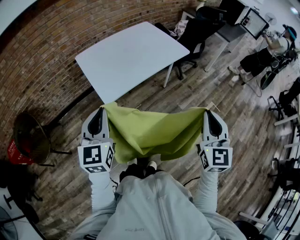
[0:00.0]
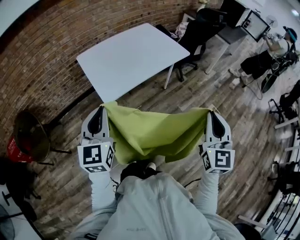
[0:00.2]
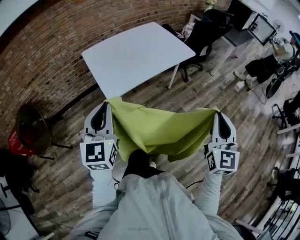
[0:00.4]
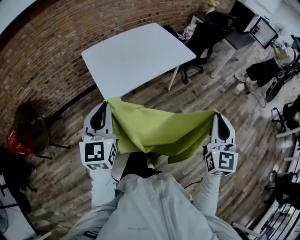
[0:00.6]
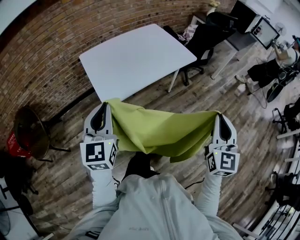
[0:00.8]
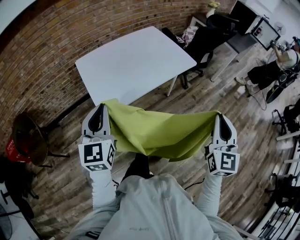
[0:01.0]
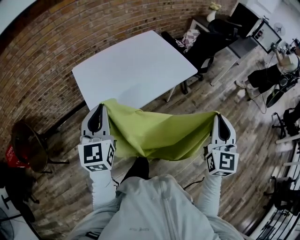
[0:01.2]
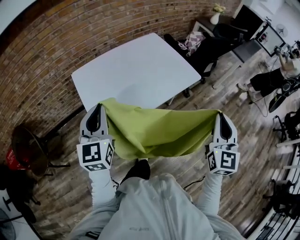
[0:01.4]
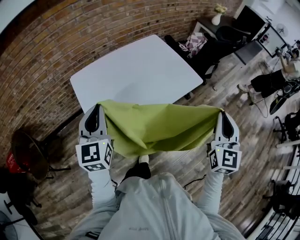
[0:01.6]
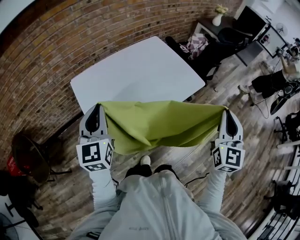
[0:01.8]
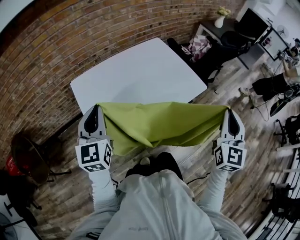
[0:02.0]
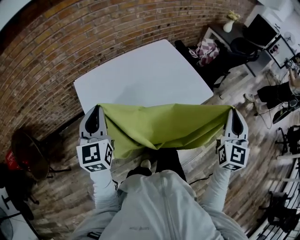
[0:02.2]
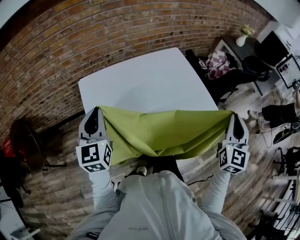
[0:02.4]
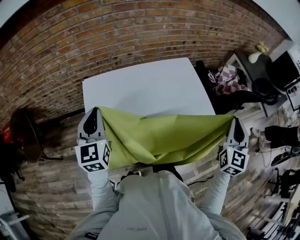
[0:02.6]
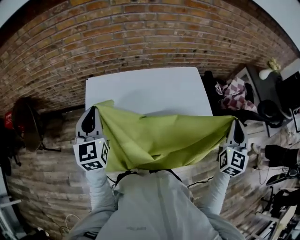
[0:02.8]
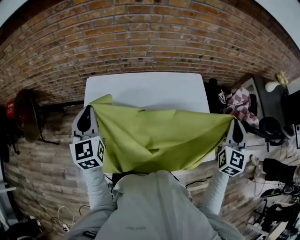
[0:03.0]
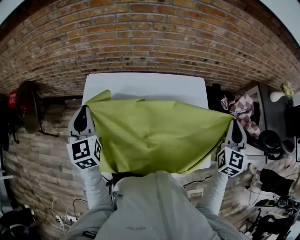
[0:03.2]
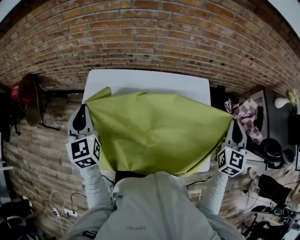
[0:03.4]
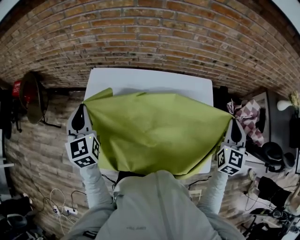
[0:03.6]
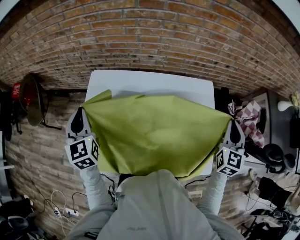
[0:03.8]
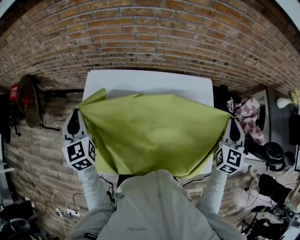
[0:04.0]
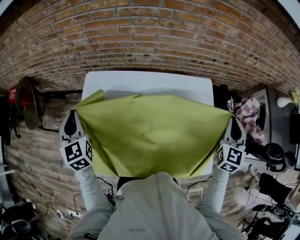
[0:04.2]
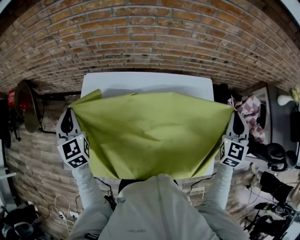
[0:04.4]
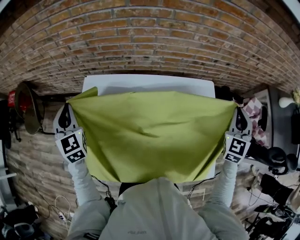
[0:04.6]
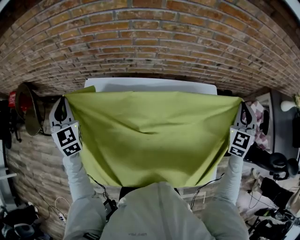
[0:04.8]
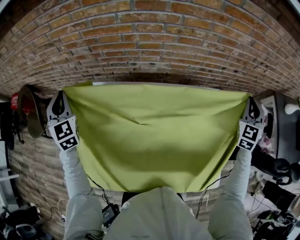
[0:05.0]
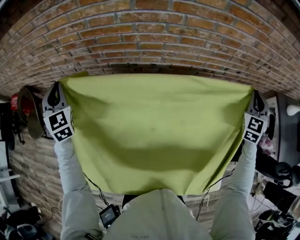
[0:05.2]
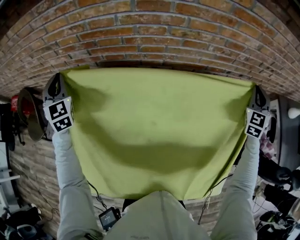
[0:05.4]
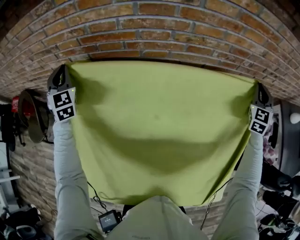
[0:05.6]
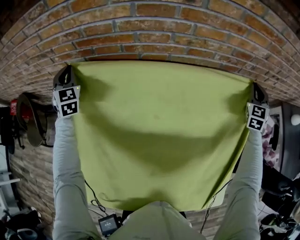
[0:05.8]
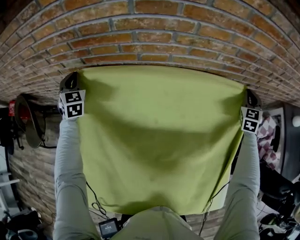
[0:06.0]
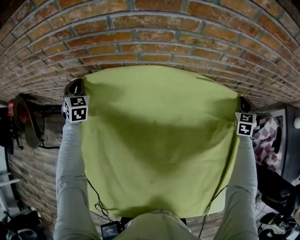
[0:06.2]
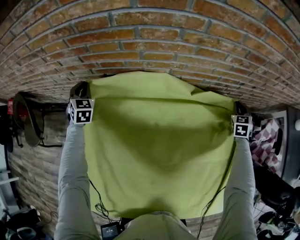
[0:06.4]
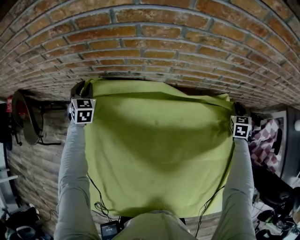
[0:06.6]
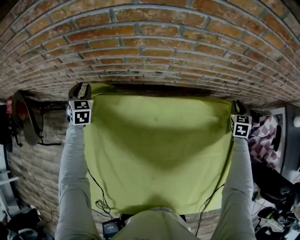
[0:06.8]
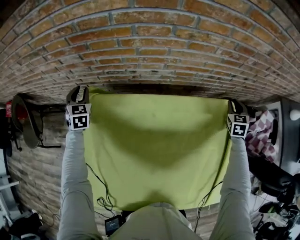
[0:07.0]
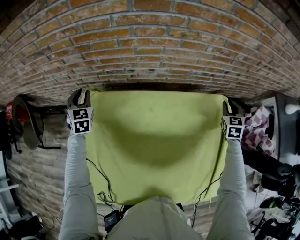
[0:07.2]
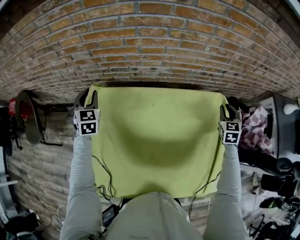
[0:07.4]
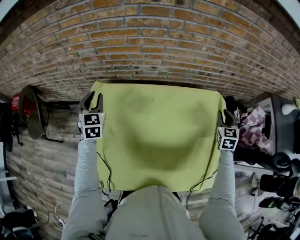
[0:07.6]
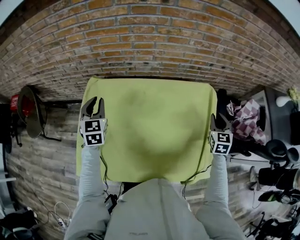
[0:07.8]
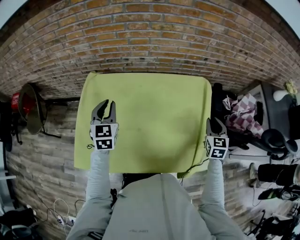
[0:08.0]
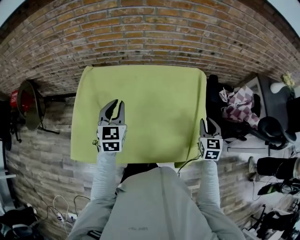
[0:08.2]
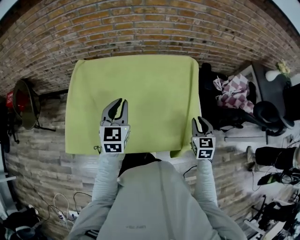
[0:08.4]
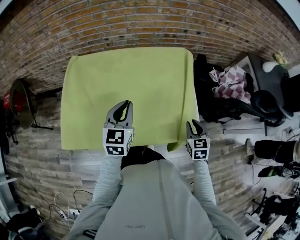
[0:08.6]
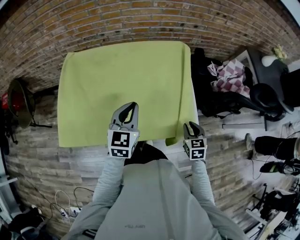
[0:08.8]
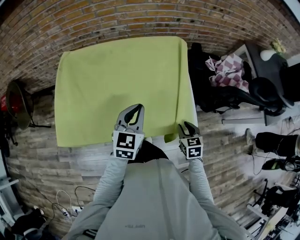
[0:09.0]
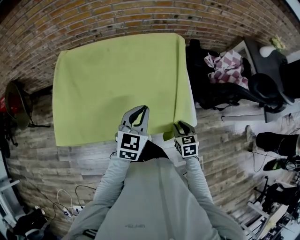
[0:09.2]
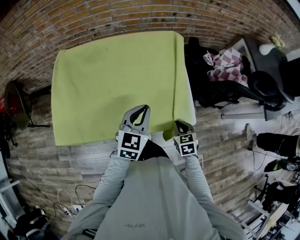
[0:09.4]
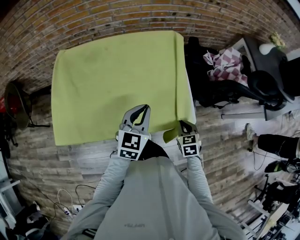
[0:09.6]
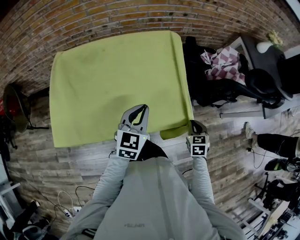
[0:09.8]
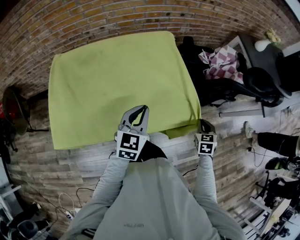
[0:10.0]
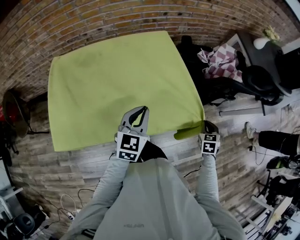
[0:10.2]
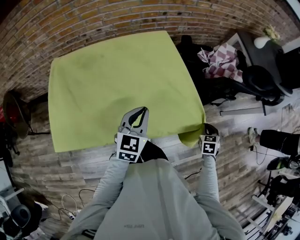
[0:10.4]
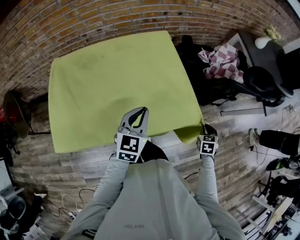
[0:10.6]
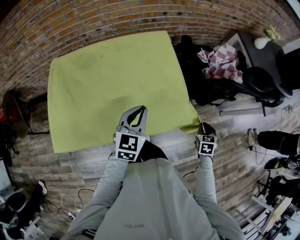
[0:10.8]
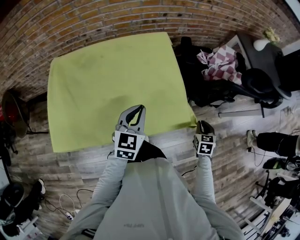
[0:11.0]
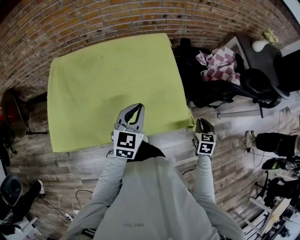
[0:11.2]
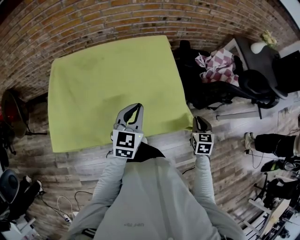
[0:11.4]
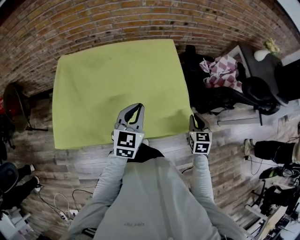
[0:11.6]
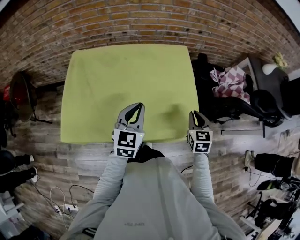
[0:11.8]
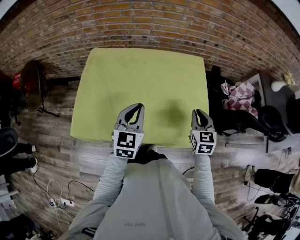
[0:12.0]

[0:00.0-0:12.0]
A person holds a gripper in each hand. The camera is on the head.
0:00.0 to 0:01.6: Both grippers travel together forward, roughly 25 cm.
0:01.6 to 0:03.0: The right gripper shifts by about 40 cm. Meanwhile the left gripper changes place by approximately 20 cm, and swivels roughly 40 degrees.
0:03.0 to 0:04.4: The right gripper goes approximately 15 cm forward and downward. The left gripper shifts about 5 cm to the left, and swivels approximately 20 degrees.
0:04.4 to 0:06.0: The left gripper heads forward, covering roughly 30 cm, while the right gripper is displaced forward and downward by about 30 cm.
0:06.0 to 0:07.6: The left gripper shifts roughly 20 cm backward and to the right, and opens up; the right gripper moves backward, some 20 cm.
0:07.6 to 0:09.0: The right gripper is displaced backward by about 35 cm, and changes its angle by approximately 20 degrees. Meanwhile the left gripper goes about 50 cm to the right and backward, turns by some 40 degrees, and closes up.
0:09.0 to 0:10.4: The right gripper heads to the right, covering approximately 20 cm, and changes its angle by roughly 20 degrees. The left gripper travels to the right by some 5 cm.
0:10.4 to 0:12.0: The right gripper changes place by about 35 cm, and rotates about 40 degrees; the left gripper ends up approximately 15 cm from where it was, and swivels roughly 20 degrees.

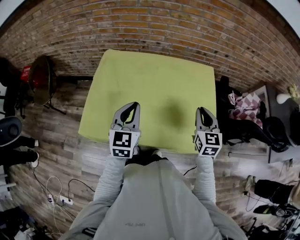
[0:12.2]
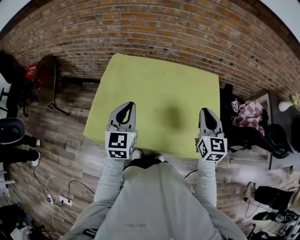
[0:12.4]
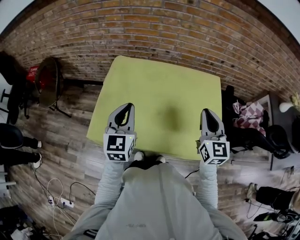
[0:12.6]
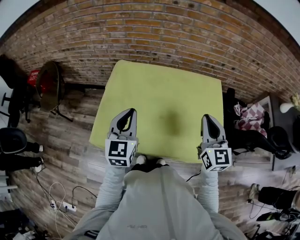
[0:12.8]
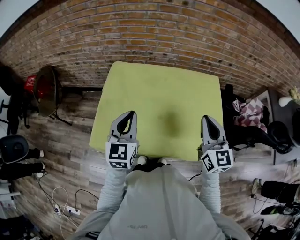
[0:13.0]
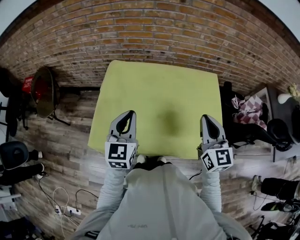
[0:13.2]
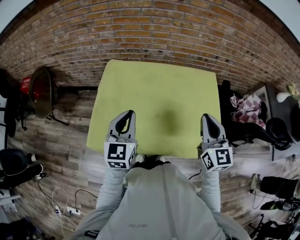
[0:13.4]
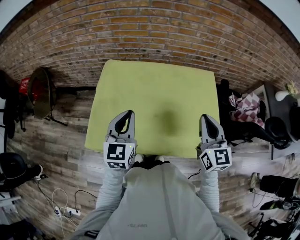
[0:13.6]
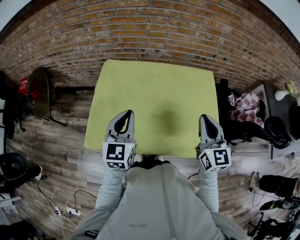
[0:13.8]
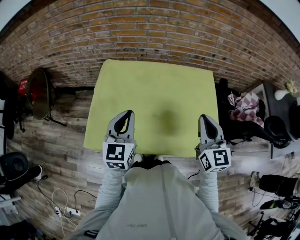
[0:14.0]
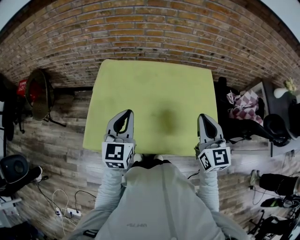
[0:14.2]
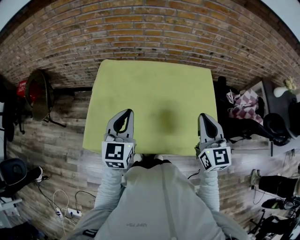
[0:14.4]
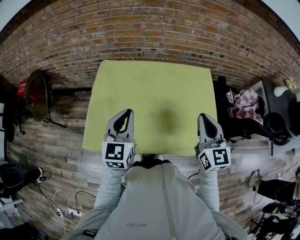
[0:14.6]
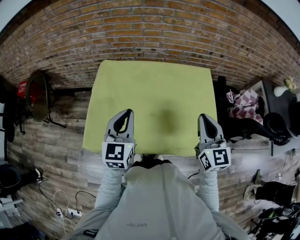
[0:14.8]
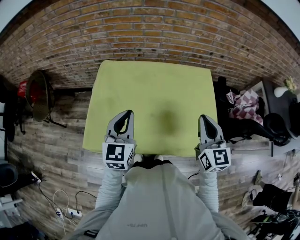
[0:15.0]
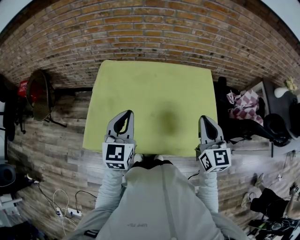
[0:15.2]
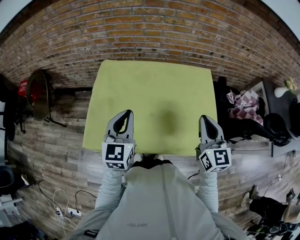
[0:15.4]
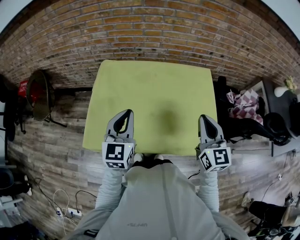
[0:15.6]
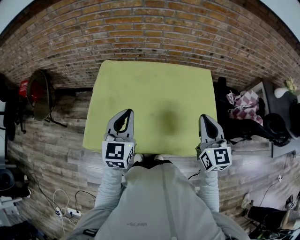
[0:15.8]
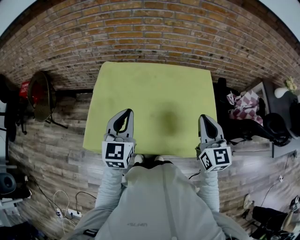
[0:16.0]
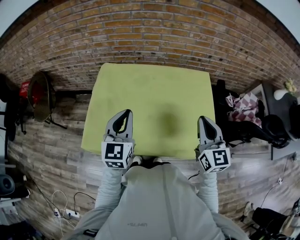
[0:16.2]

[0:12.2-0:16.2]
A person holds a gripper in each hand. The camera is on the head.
0:12.2 to 0:13.6: The left gripper travels to the left by roughly 5 cm. The right gripper is displaced upward and to the left by roughly 10 cm.
0:13.6 to 0:16.2: There are only small adjustments of the grippers.

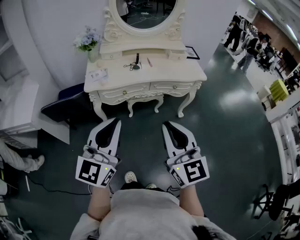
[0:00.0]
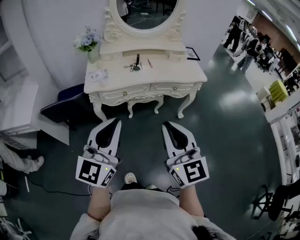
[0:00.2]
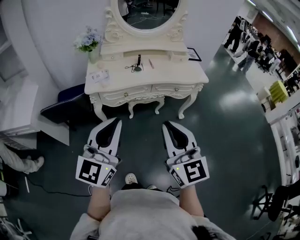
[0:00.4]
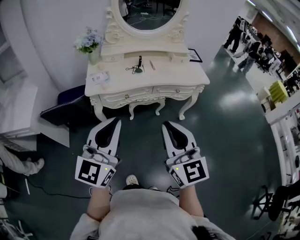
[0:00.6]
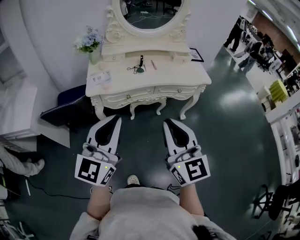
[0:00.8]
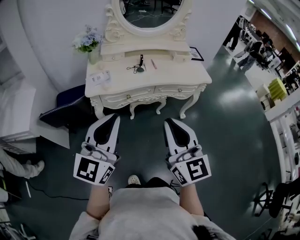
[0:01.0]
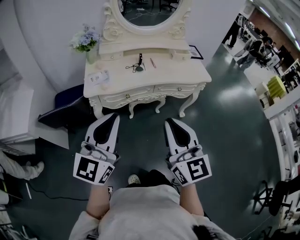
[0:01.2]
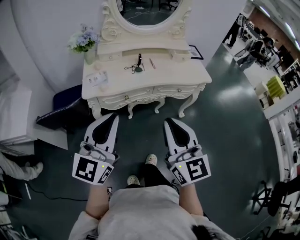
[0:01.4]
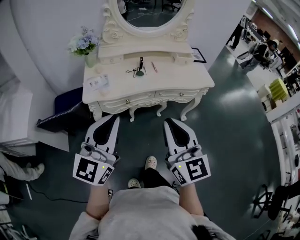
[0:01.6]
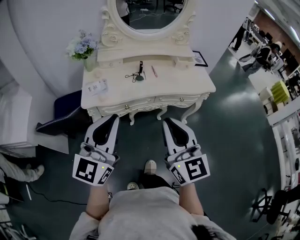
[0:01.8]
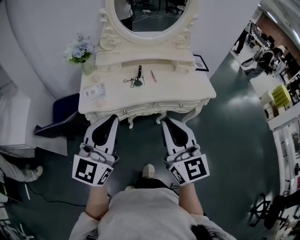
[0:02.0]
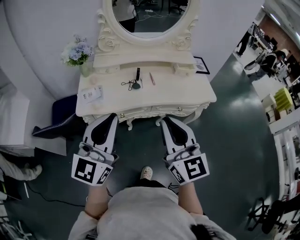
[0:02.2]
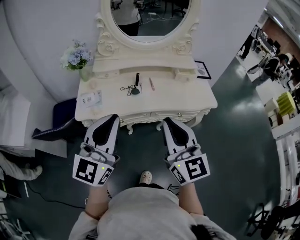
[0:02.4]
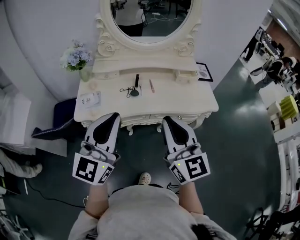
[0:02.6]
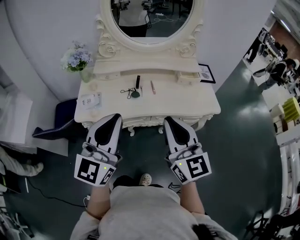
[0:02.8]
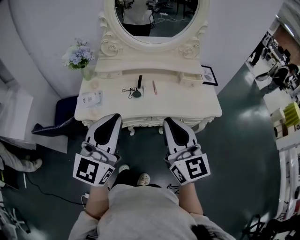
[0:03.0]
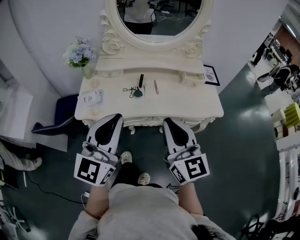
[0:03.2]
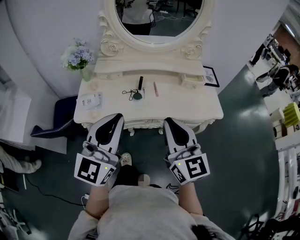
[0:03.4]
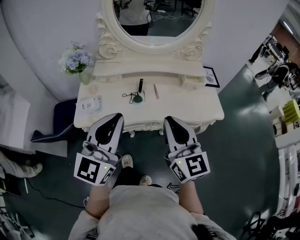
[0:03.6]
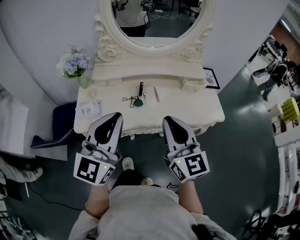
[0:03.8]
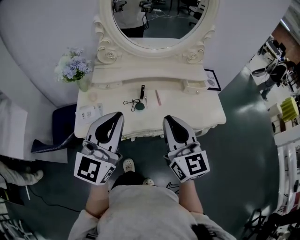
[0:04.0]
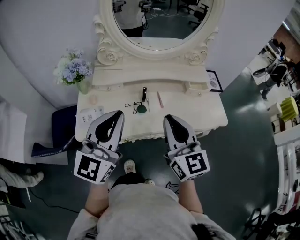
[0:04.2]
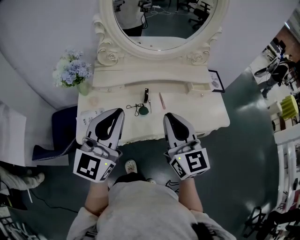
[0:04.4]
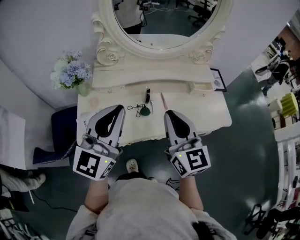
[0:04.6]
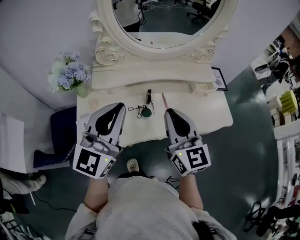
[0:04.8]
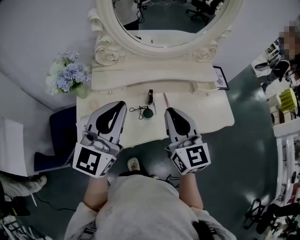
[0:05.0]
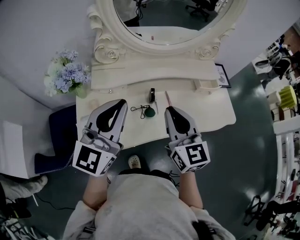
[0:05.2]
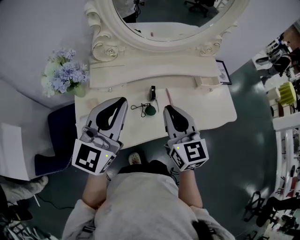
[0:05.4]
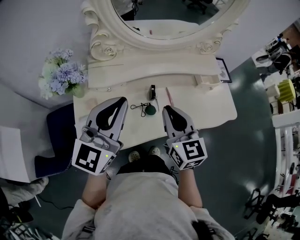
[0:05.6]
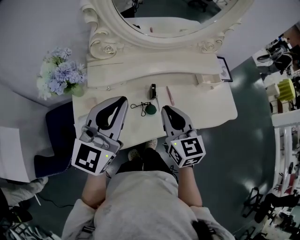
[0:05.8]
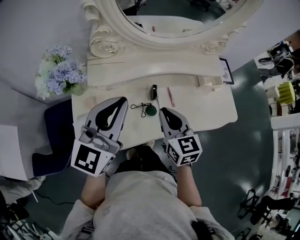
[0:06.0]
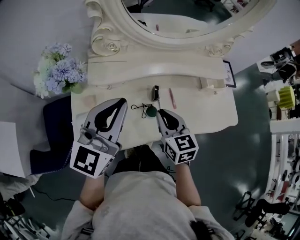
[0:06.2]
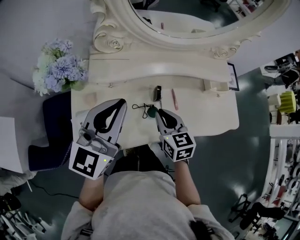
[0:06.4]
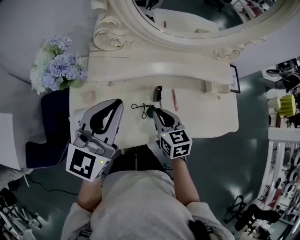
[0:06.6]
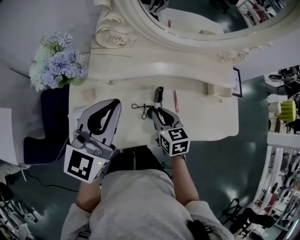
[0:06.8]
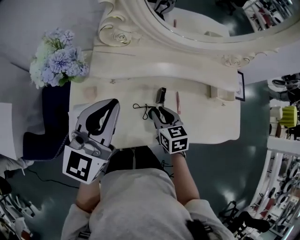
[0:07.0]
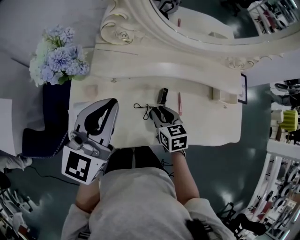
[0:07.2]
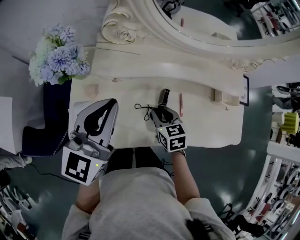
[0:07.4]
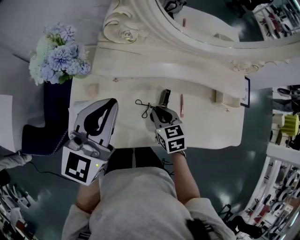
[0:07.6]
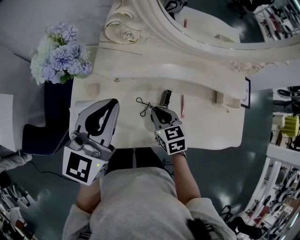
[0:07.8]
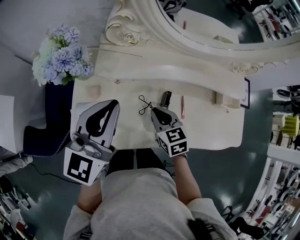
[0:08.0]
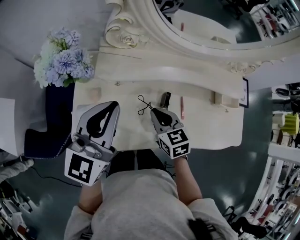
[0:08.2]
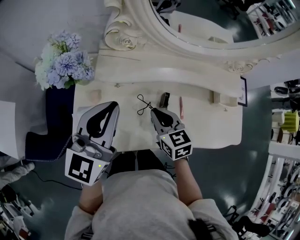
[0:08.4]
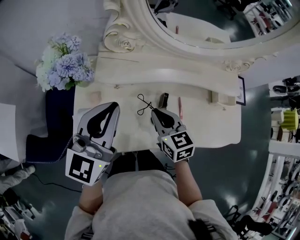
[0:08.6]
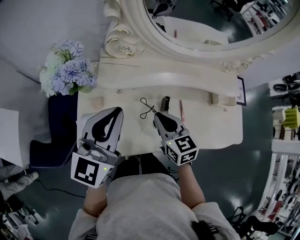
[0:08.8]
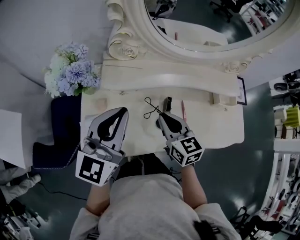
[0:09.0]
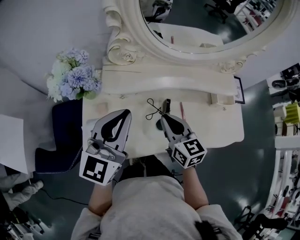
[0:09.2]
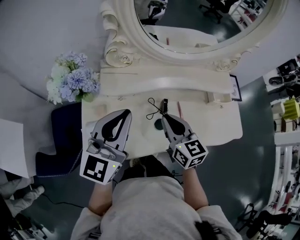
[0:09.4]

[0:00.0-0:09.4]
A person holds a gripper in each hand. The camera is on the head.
0:00.0 to 0:01.6: The right gripper moves forward, approximately 10 cm; the left gripper travels forward and to the left by some 15 cm.
0:01.6 to 0:03.2: The two grippers go some 20 cm forward and to the right.
0:03.2 to 0:04.8: Both grippers travel together forward and to the left, about 20 cm.
0:04.8 to 0:06.2: The left gripper moves forward and downward, approximately 10 cm. The right gripper heads downward and forward, covering some 15 cm, and swivels about 30 degrees.
0:06.2 to 0:07.8: The left gripper moves about 5 cm, while the right gripper shifts roughly 10 cm downward, and turns by about 20 degrees.
0:07.8 to 0:09.4: The right gripper heads upward, covering about 15 cm, and swivels approximately 30 degrees.
